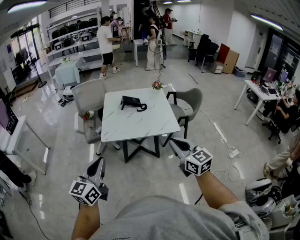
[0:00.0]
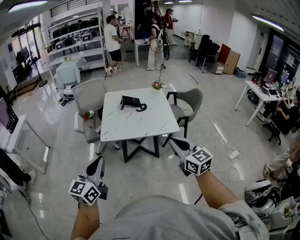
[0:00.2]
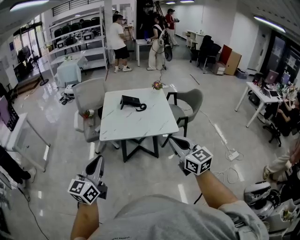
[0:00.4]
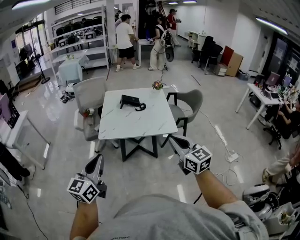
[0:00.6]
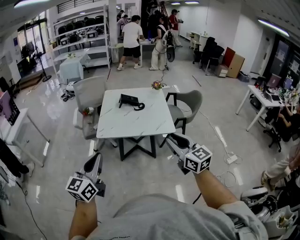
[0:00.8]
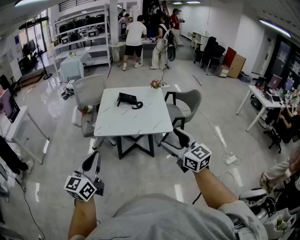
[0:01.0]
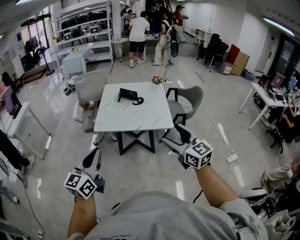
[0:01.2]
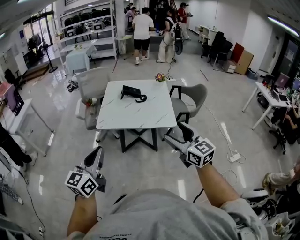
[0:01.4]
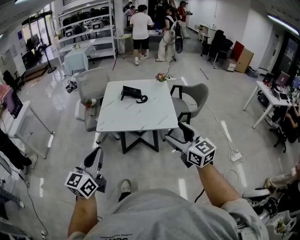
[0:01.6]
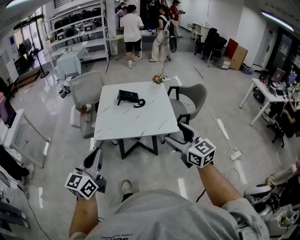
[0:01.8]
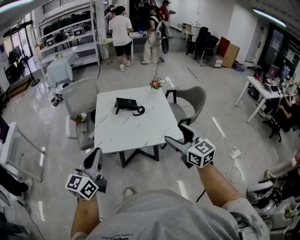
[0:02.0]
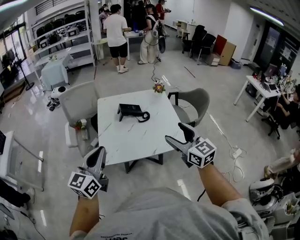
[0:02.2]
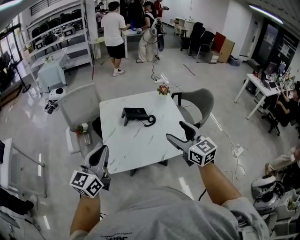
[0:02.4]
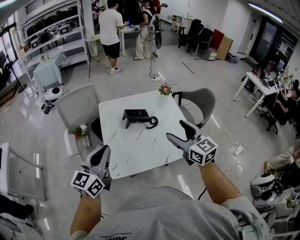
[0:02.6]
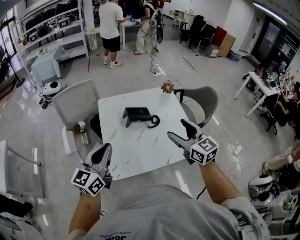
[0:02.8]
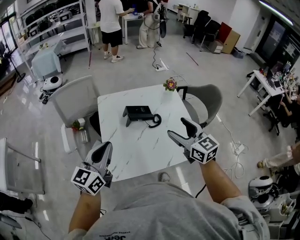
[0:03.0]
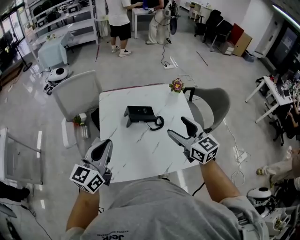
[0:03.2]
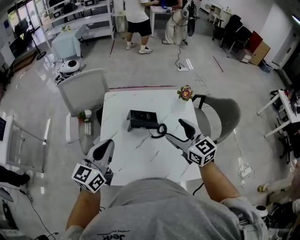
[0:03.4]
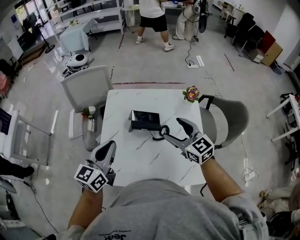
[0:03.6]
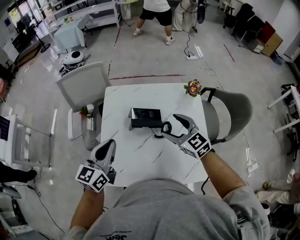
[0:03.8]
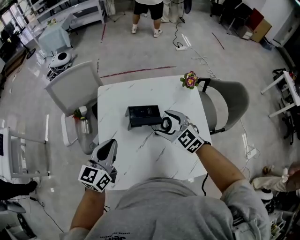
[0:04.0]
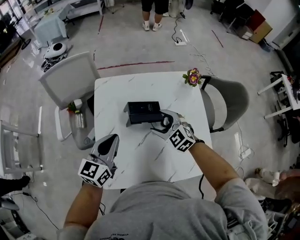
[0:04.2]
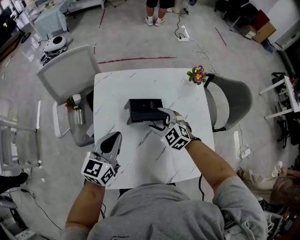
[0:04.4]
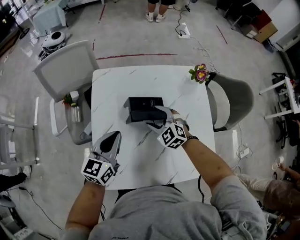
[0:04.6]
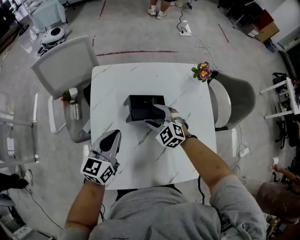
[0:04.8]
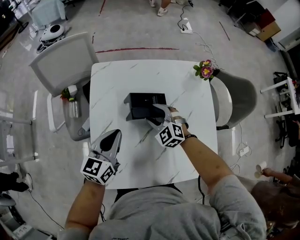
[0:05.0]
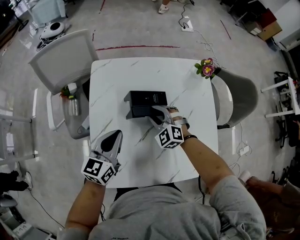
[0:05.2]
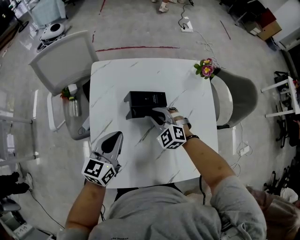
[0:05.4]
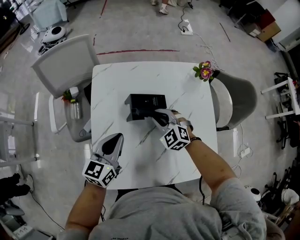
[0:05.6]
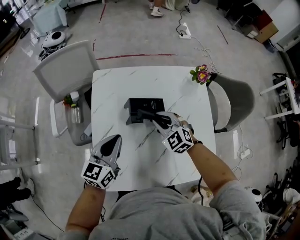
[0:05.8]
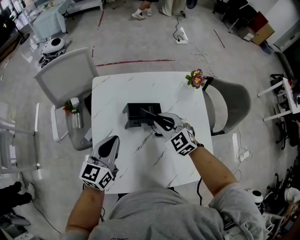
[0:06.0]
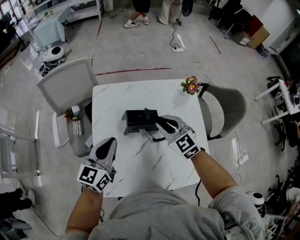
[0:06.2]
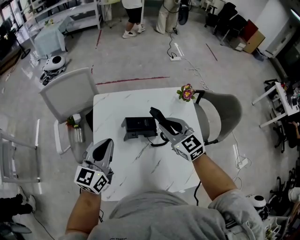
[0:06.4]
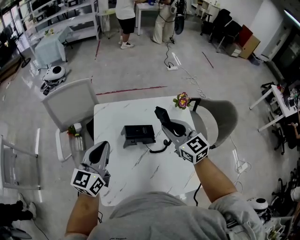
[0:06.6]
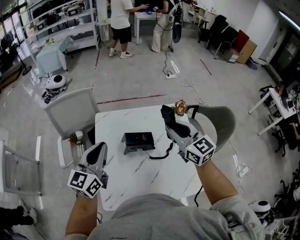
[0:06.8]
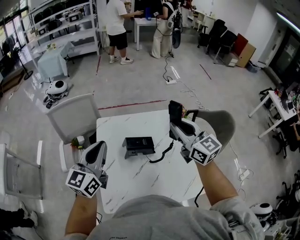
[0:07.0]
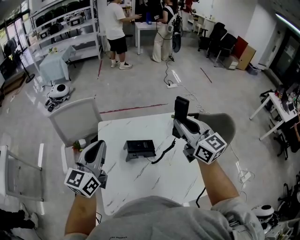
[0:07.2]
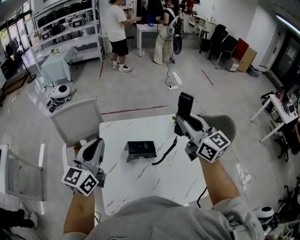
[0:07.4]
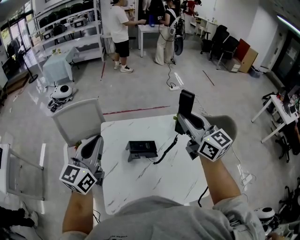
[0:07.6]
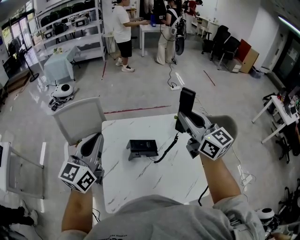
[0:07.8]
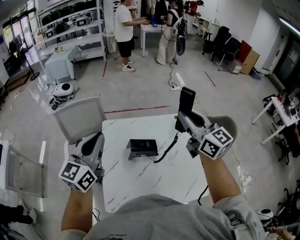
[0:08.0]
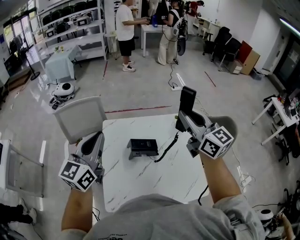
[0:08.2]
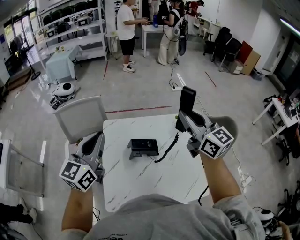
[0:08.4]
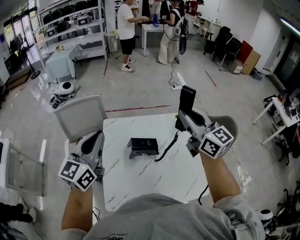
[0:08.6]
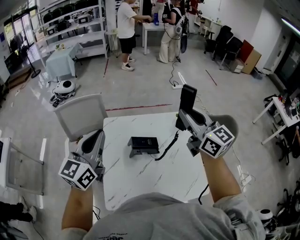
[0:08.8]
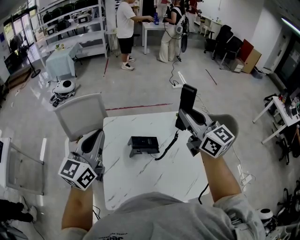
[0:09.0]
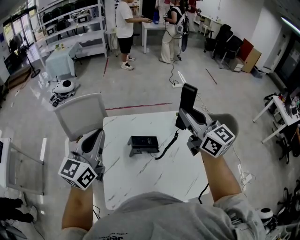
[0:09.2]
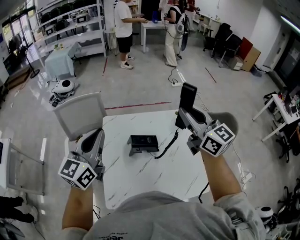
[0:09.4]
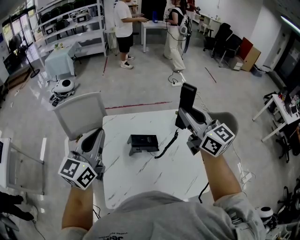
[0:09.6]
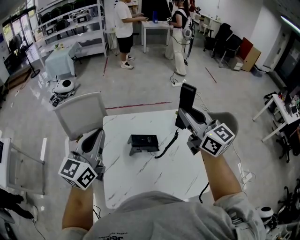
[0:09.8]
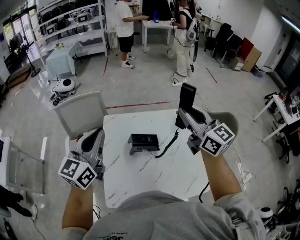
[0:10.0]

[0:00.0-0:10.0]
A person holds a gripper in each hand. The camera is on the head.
0:00.0 to 0:01.4: The two grippers go roughly 10 cm to the right. The right gripper opens.
0:01.4 to 0:02.8: Both grippers are carried forward, some 50 cm.
0:02.8 to 0:04.2: The left gripper is displaced forward, downward and to the right by some 25 cm; the right gripper moves forward and downward, roughly 35 cm, and turns by some 40 degrees.
0:04.2 to 0:05.8: The left gripper travels downward by roughly 5 cm; the right gripper closes its fingers.
0:05.8 to 0:07.2: Both grippers travel together upward, approximately 30 cm. The right gripper tips its fingers upward by roughly 40 degrees.
0:07.2 to 0:08.6: The right gripper changes place by some 5 cm.
0:08.6 to 0:10.0: The two grippers keep their place.

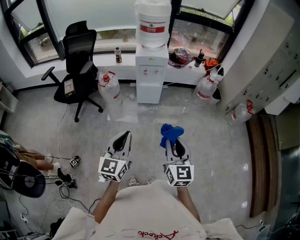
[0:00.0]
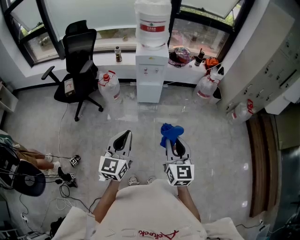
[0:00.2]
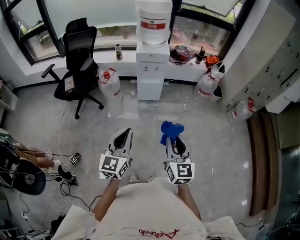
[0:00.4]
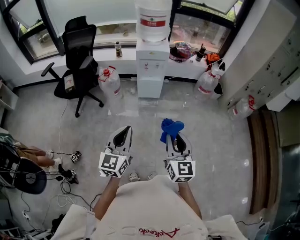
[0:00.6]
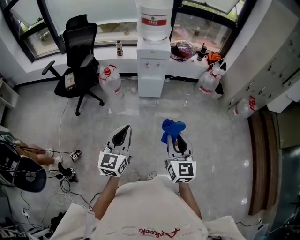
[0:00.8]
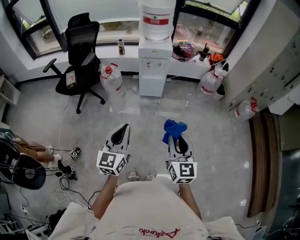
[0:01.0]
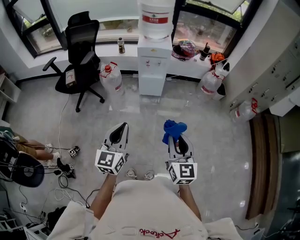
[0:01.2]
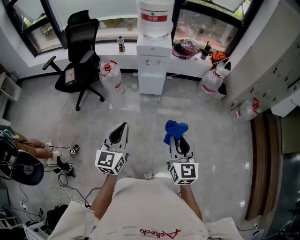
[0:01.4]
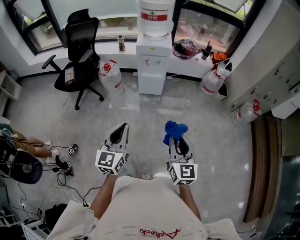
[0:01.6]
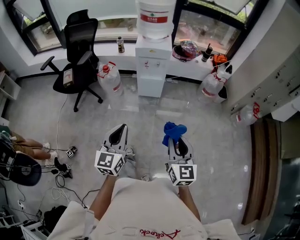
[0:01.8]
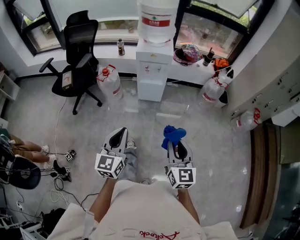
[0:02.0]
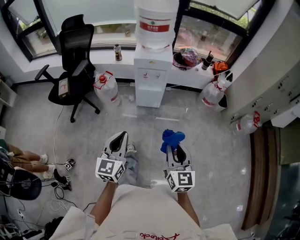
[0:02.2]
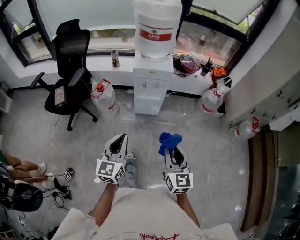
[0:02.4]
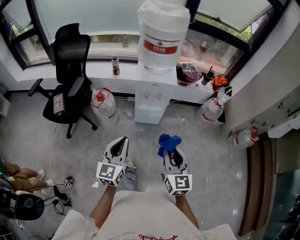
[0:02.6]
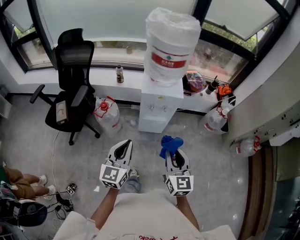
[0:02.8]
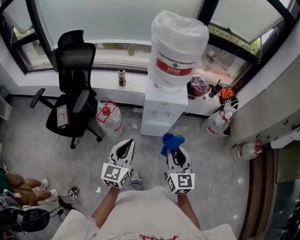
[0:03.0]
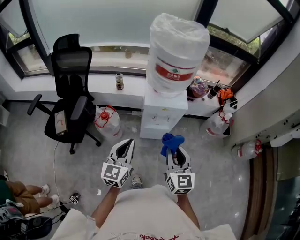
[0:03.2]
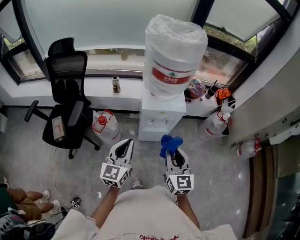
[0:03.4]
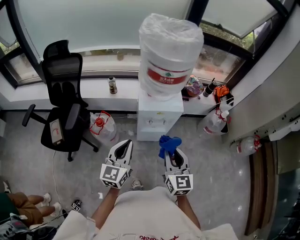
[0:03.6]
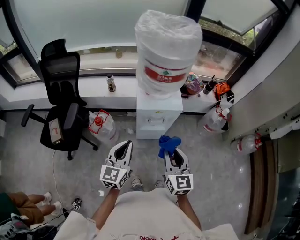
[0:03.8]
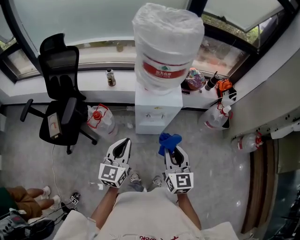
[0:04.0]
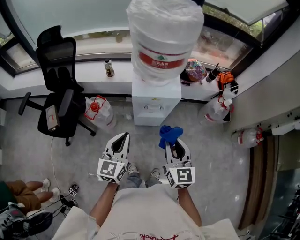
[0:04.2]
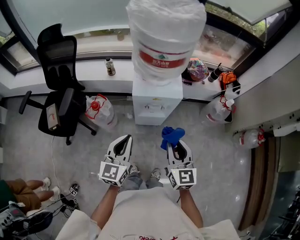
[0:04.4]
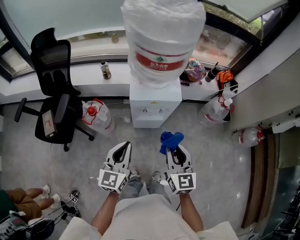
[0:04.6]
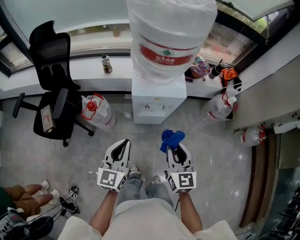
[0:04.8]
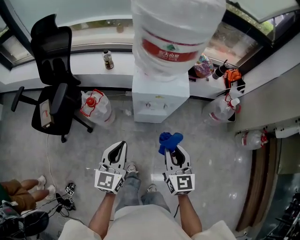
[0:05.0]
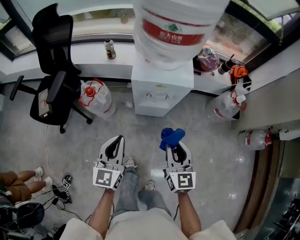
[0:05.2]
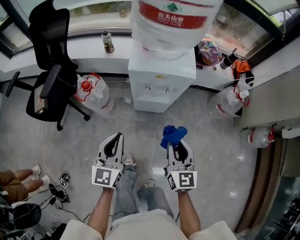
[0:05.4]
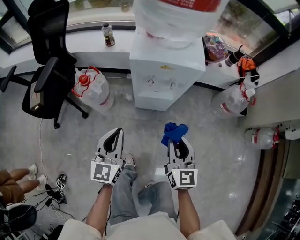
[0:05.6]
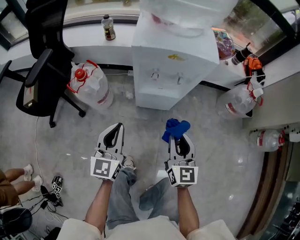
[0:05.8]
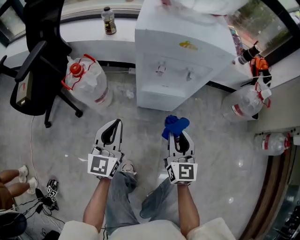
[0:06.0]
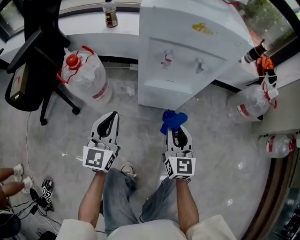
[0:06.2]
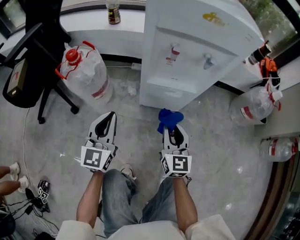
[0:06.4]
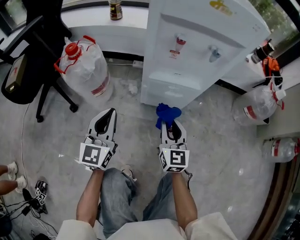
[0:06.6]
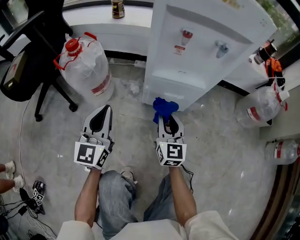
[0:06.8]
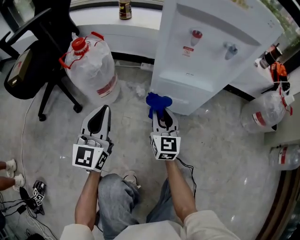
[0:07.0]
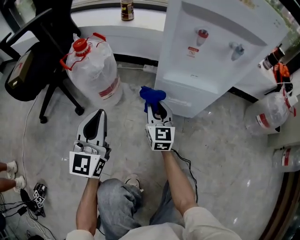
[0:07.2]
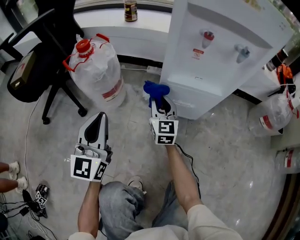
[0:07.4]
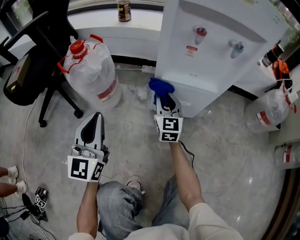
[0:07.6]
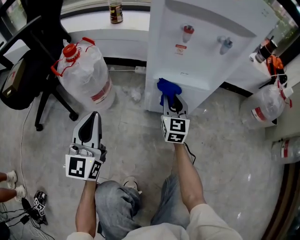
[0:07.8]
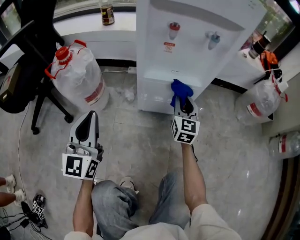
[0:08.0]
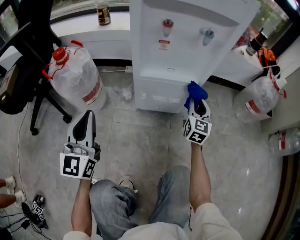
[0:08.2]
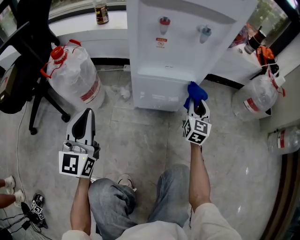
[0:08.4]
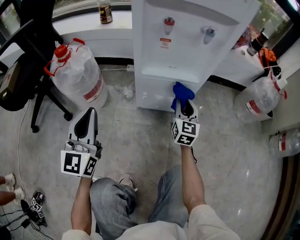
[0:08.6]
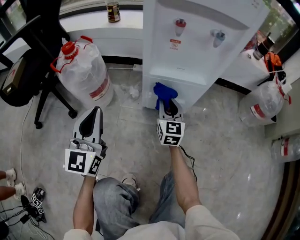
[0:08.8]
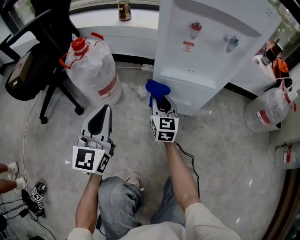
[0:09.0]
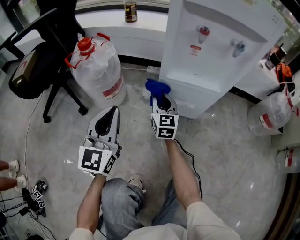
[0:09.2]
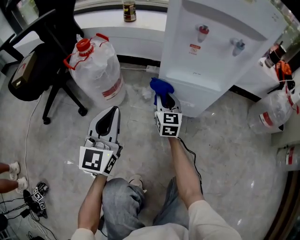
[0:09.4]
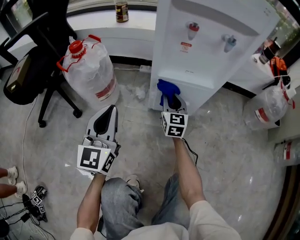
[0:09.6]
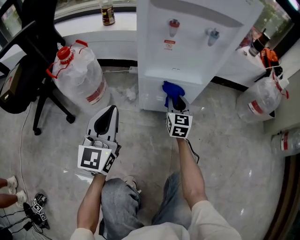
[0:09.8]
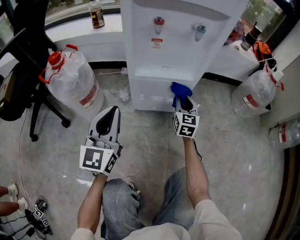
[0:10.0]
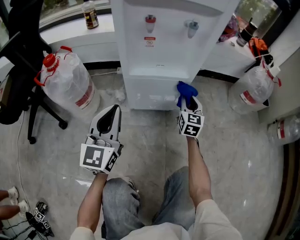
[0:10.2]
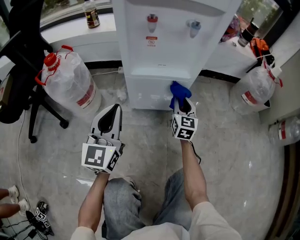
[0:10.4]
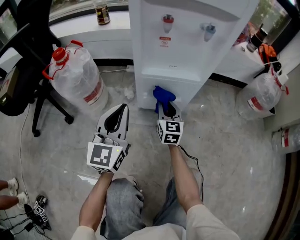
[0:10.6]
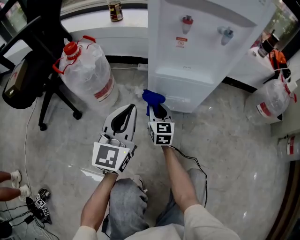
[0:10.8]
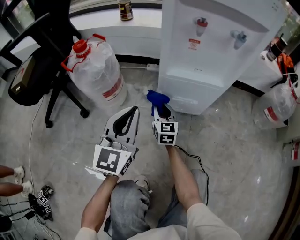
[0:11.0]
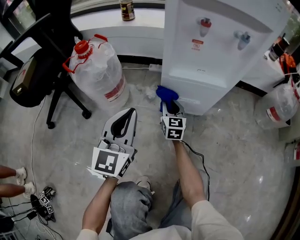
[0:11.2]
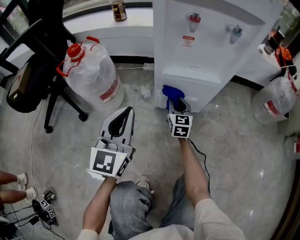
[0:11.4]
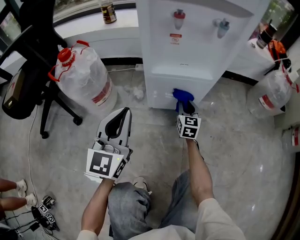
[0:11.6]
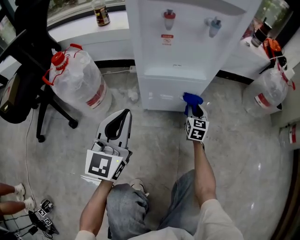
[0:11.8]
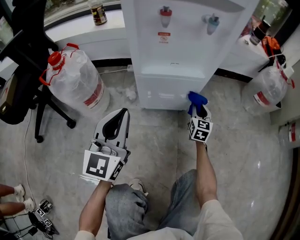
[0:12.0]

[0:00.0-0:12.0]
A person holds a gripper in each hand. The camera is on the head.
0:00.0 to 0:01.6: The right gripper moves to the right, roughly 5 cm; the left gripper ends up approximately 5 cm from where it was.
0:01.6 to 0:03.0: The pair of grippers is taken forward, approximately 40 cm.
0:03.0 to 0:04.4: The grippers both shift forward by roughly 10 cm.
0:04.4 to 0:06.0: Both grippers move downward, approximately 35 cm.
0:06.0 to 0:07.6: The right gripper goes approximately 30 cm downward, forward and to the left; the left gripper shifts about 15 cm downward and to the left.
0:07.6 to 0:09.0: The right gripper goes to the right and returns, some 25 cm each way.
0:09.0 to 0:10.4: The left gripper moves to the right, some 10 cm, while the right gripper moves to the right, roughly 20 cm.
0:10.4 to 0:12.0: The right gripper moves downward, roughly 10 cm, and travels to the left and back again, some 25 cm each way.

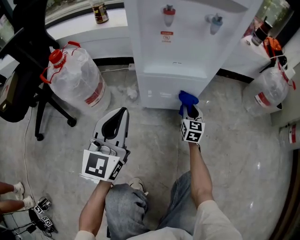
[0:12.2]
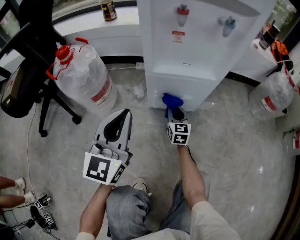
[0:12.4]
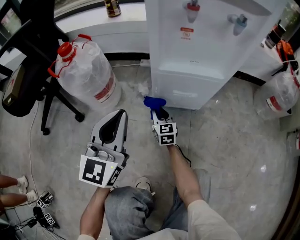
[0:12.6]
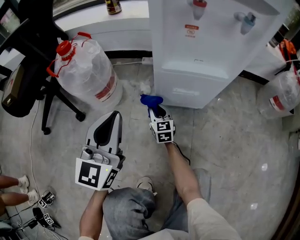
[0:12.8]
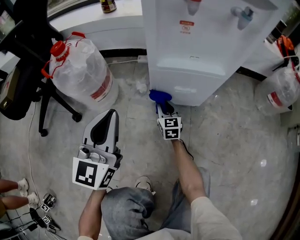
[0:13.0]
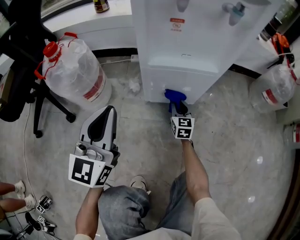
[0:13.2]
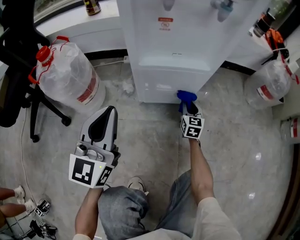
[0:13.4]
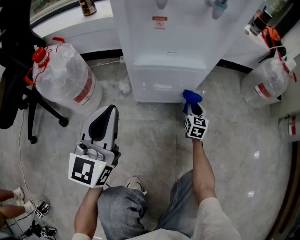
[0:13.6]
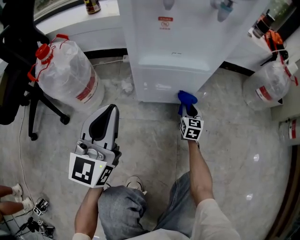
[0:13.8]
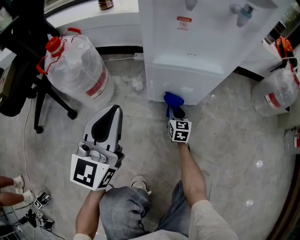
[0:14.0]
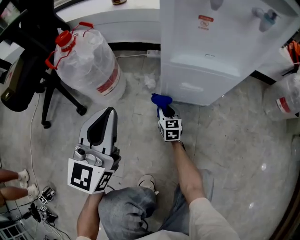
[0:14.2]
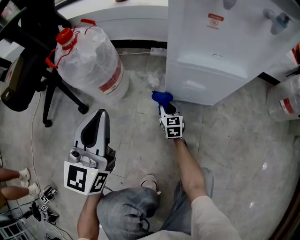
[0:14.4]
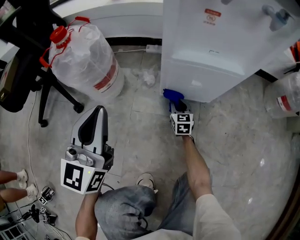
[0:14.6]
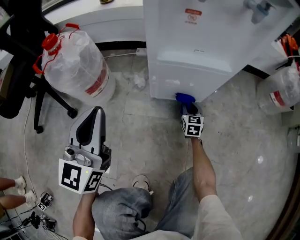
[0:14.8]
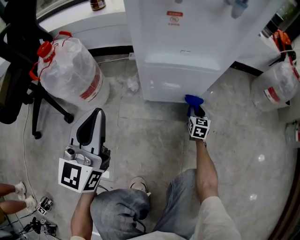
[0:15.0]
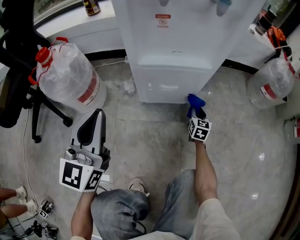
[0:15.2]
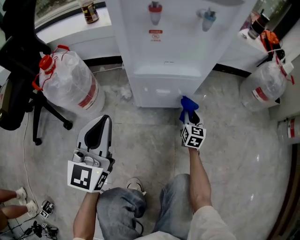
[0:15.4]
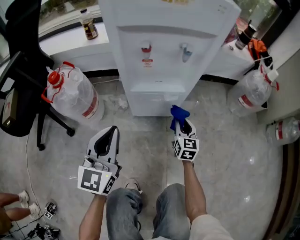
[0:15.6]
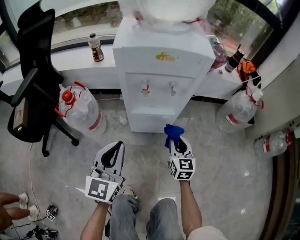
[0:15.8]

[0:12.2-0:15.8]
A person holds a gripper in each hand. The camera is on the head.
0:12.2 to 0:14.0: The right gripper goes left and right, roughly 30 cm each way, reversing 2 times.
0:14.0 to 0:15.8: The right gripper heads upward, covering roughly 35 cm. Meanwhile the left gripper heads upward, covering some 15 cm.
